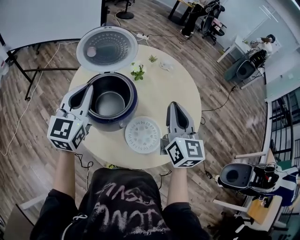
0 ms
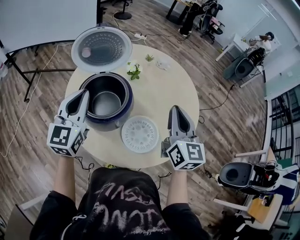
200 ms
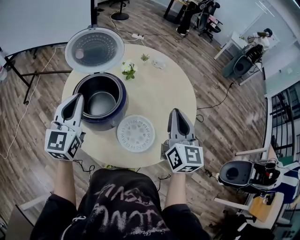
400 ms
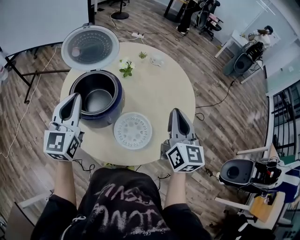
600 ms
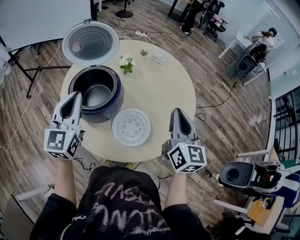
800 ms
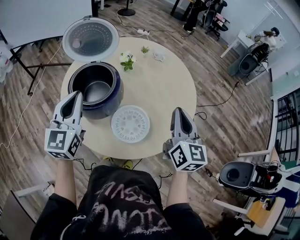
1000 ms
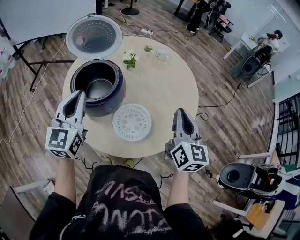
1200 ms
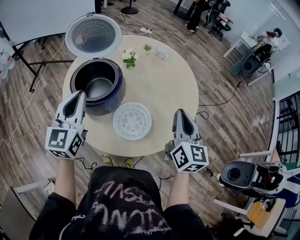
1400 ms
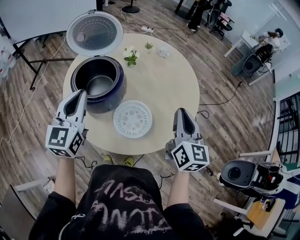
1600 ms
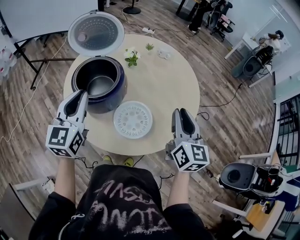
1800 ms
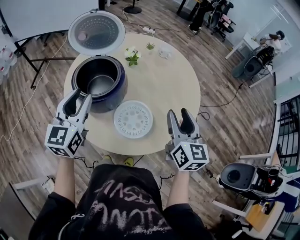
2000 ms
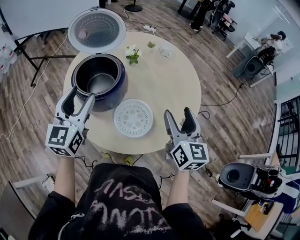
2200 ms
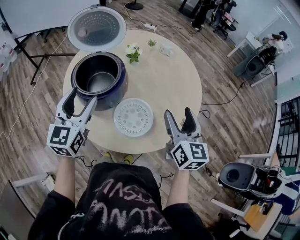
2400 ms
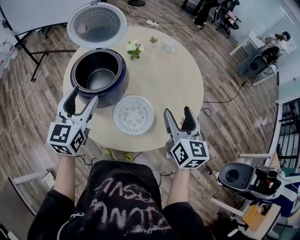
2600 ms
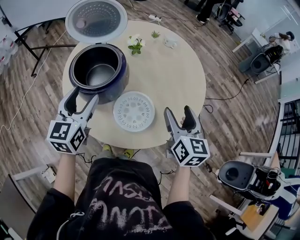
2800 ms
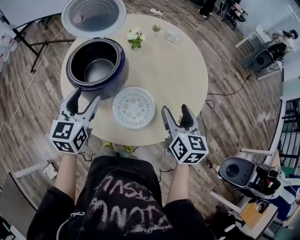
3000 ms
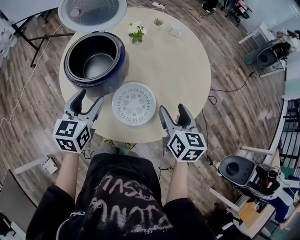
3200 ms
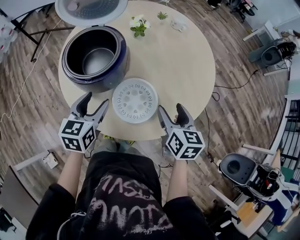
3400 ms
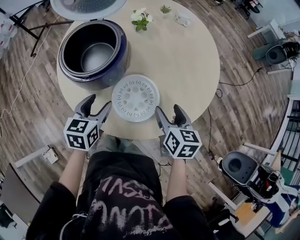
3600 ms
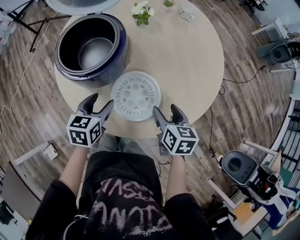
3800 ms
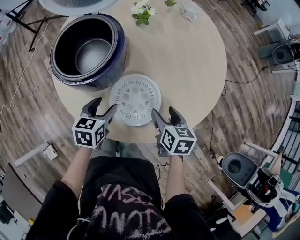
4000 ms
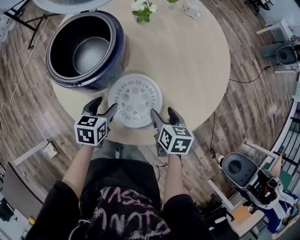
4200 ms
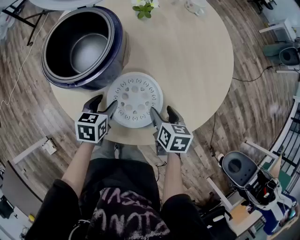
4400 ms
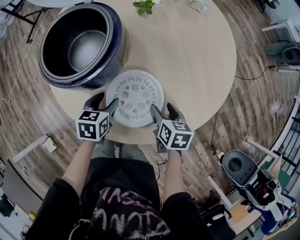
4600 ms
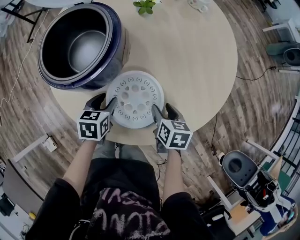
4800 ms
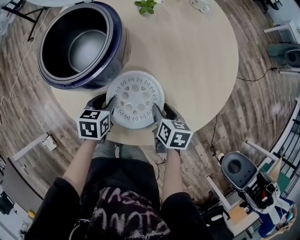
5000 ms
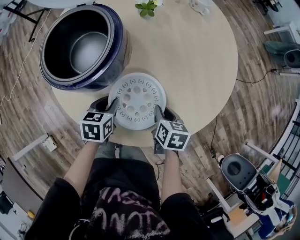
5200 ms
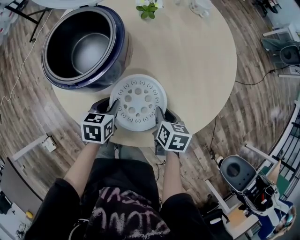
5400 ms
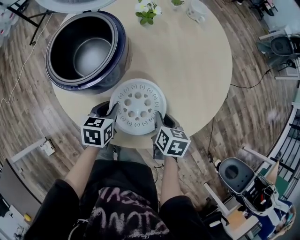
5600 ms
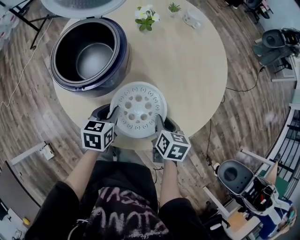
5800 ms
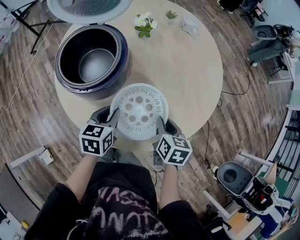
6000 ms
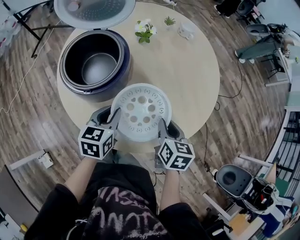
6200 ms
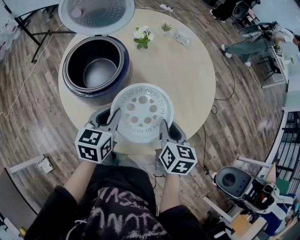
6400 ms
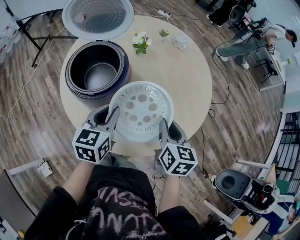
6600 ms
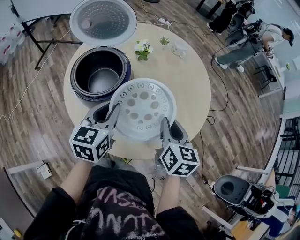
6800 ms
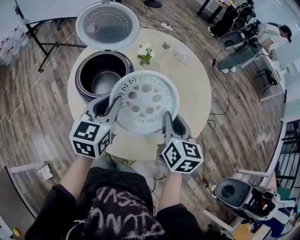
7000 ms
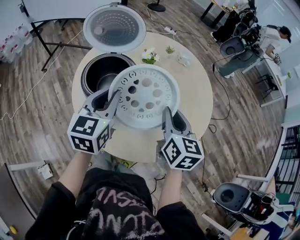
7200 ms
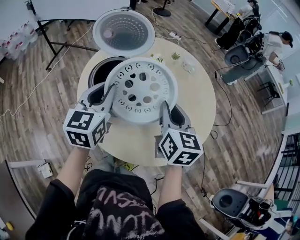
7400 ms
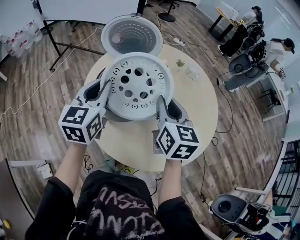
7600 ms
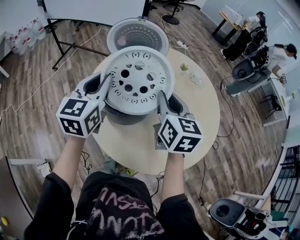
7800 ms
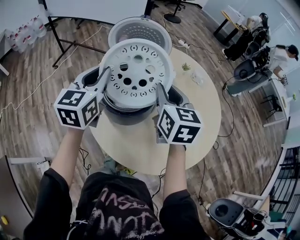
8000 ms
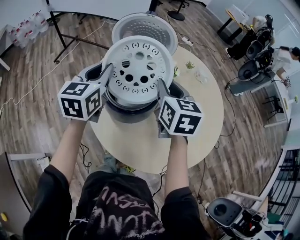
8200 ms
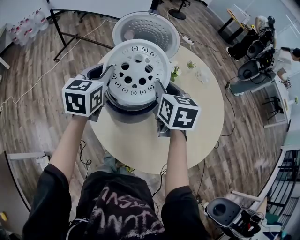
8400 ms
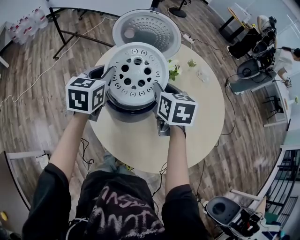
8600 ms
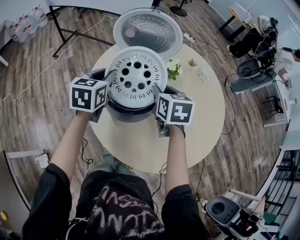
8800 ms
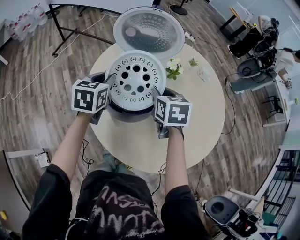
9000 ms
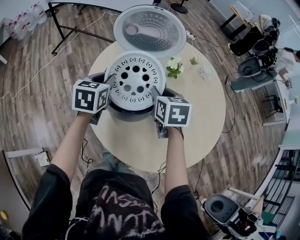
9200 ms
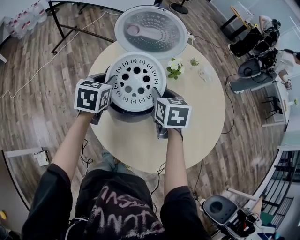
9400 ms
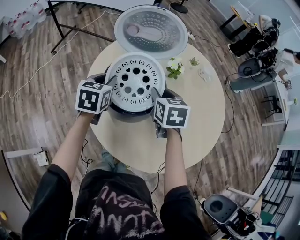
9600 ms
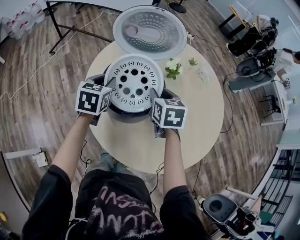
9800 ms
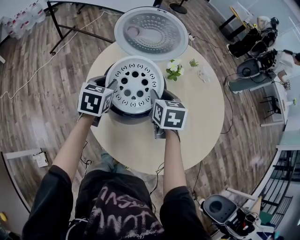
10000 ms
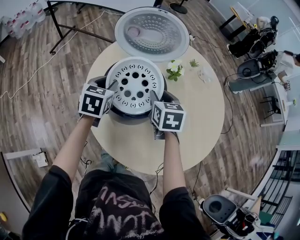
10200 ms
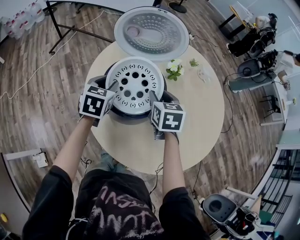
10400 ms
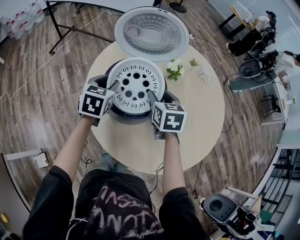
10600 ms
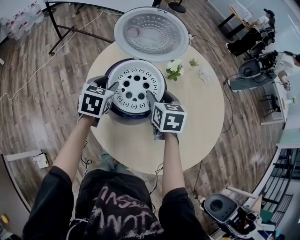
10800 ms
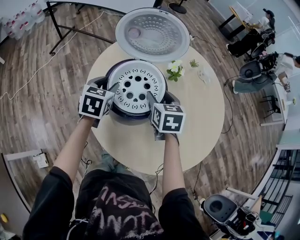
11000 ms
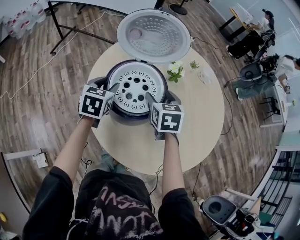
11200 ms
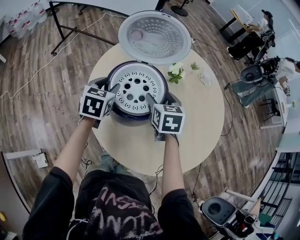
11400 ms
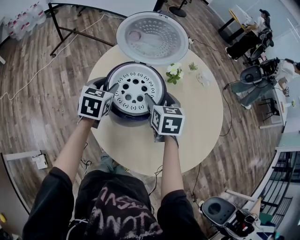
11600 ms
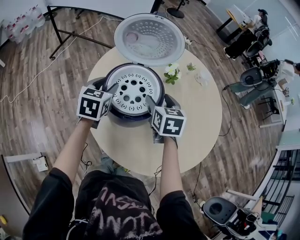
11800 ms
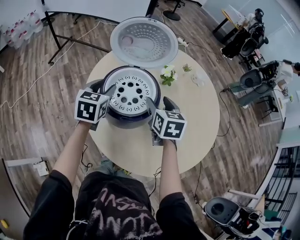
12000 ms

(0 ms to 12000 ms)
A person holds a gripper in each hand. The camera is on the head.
0 ms - 1600 ms: The left gripper shifts some 10 cm backward and to the right. Meanwhile the right gripper shifts roughly 15 cm to the right and backward.
1600 ms - 3000 ms: The two grippers go some 10 cm downward. The left gripper opens its fingers, while the right gripper opens its fingers.
3000 ms - 4400 ms: The two grippers go approximately 25 cm downward. The right gripper changes its angle by about 30 degrees; the left gripper points its fingers approximately 30 degrees further downward.
4400 ms - 6000 ms: The grippers both shift upward by approximately 5 cm. The right gripper closes its fingers, while the left gripper closes.
6000 ms - 7600 ms: Both grippers travel together upward and to the left, about 30 cm. The right gripper points its fingers about 30 degrees further upward, while the left gripper rotates approximately 40 degrees.
7600 ms - 9000 ms: Both grippers move downward, forward and to the left, some 15 cm. The left gripper turns by some 20 degrees. Meanwhile the right gripper turns by roughly 30 degrees.
9000 ms - 10400 ms: There are only small adjustments of the grippers.
10400 ms - 12000 ms: The right gripper opens.

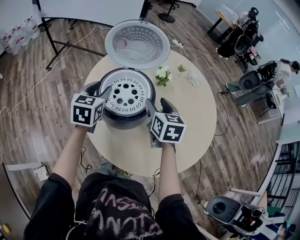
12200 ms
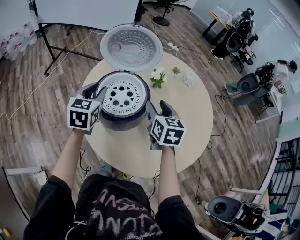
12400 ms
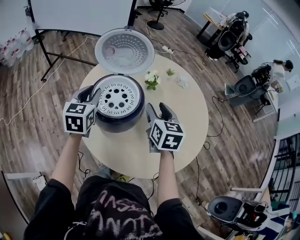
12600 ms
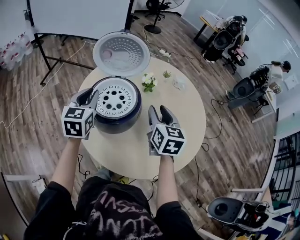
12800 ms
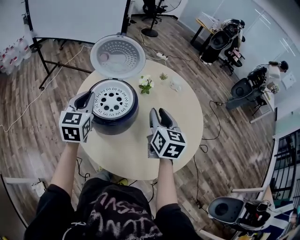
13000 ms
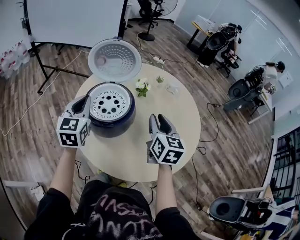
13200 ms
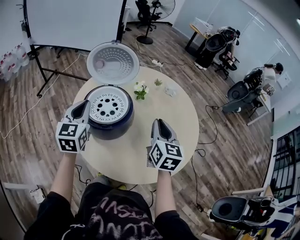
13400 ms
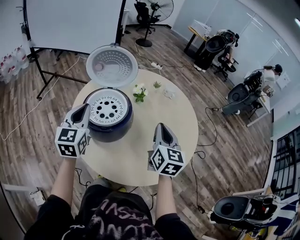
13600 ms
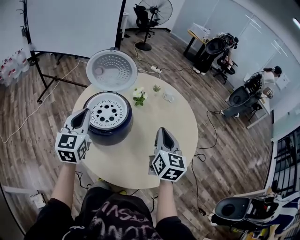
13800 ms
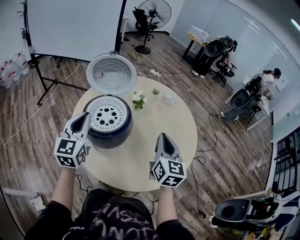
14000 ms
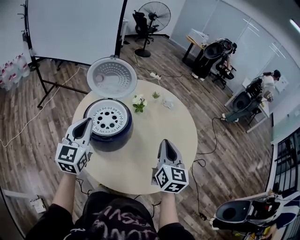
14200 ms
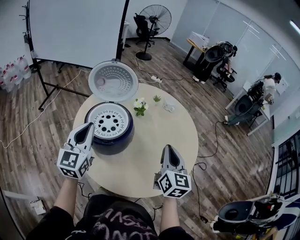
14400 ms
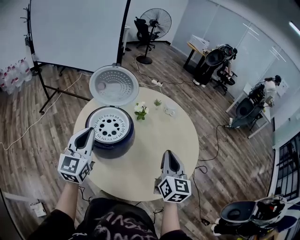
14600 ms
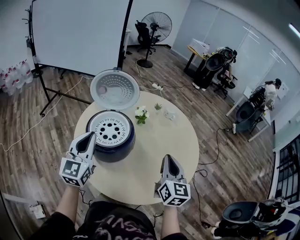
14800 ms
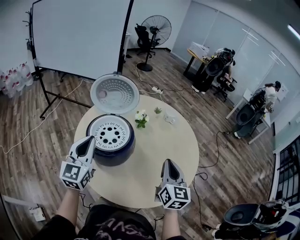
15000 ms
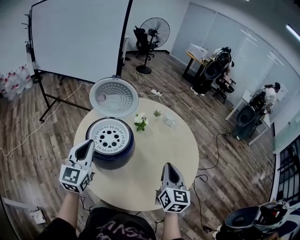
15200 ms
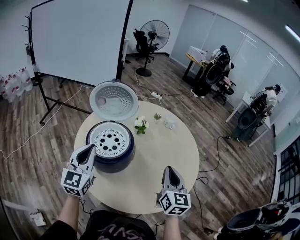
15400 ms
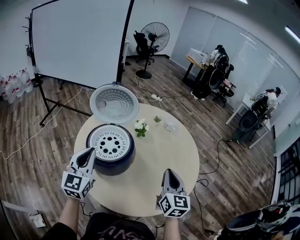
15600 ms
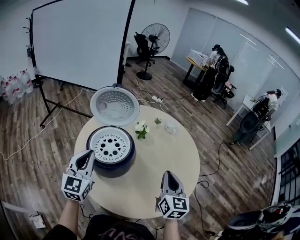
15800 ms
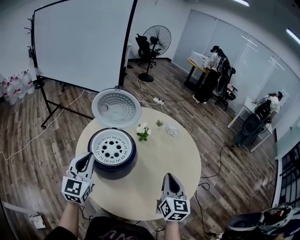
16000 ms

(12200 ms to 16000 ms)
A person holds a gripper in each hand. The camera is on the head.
12200 ms - 13400 ms: The left gripper goes approximately 10 cm upward and backward, and closes, while the right gripper heads backward, to the right and upward, covering some 15 cm, changes its angle by some 20 degrees, and closes its fingers.
13400 ms - 14800 ms: The right gripper ends up about 5 cm from where it was. The left gripper moves some 5 cm.
14800 ms - 16000 ms: The grippers stay close to where they were, moving slightly.

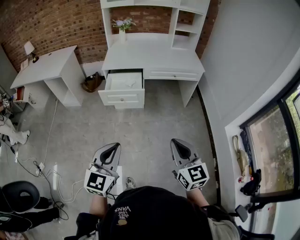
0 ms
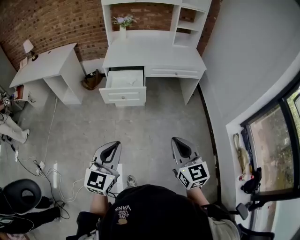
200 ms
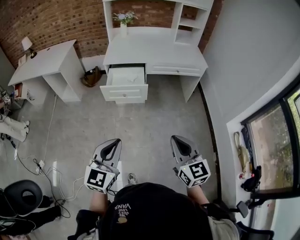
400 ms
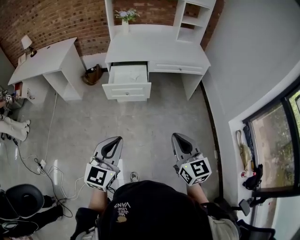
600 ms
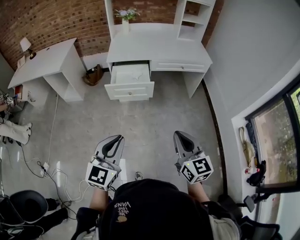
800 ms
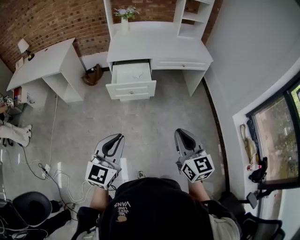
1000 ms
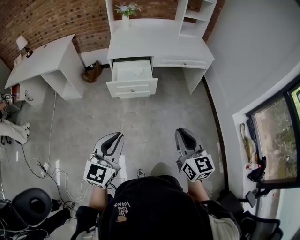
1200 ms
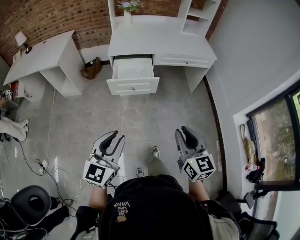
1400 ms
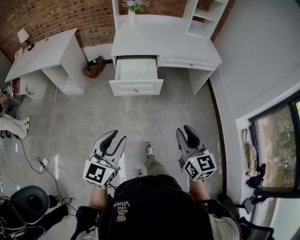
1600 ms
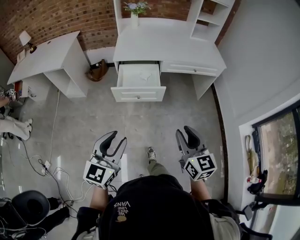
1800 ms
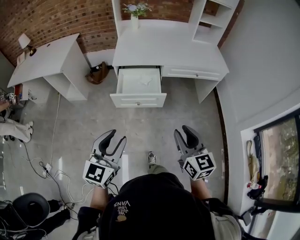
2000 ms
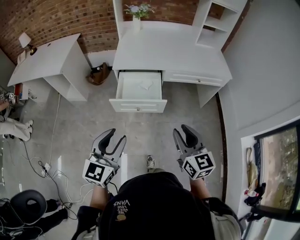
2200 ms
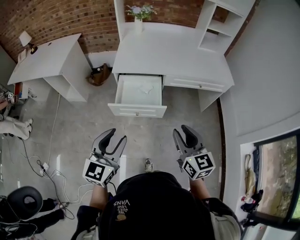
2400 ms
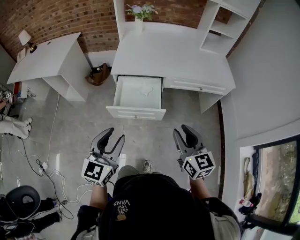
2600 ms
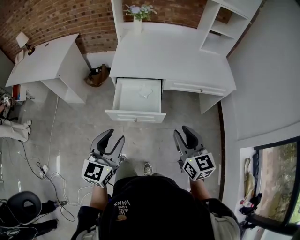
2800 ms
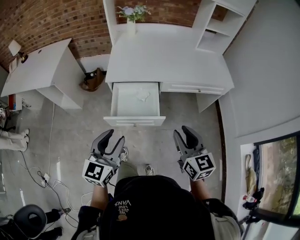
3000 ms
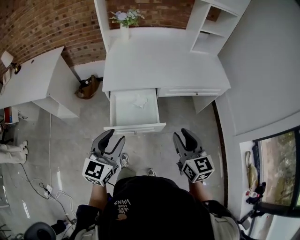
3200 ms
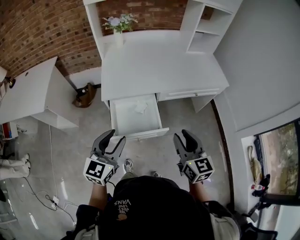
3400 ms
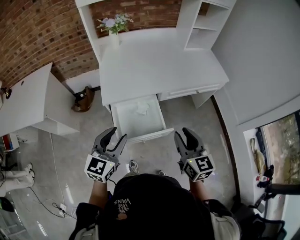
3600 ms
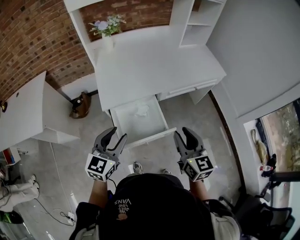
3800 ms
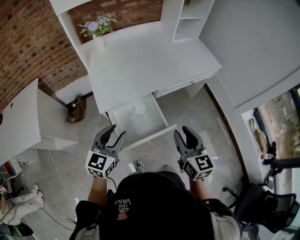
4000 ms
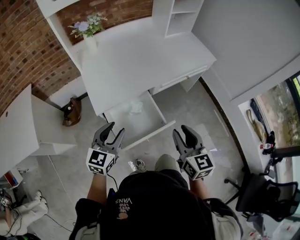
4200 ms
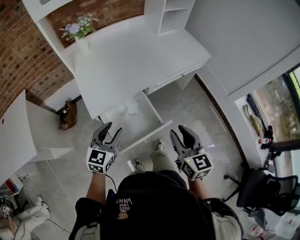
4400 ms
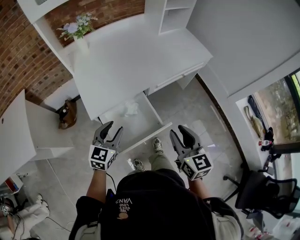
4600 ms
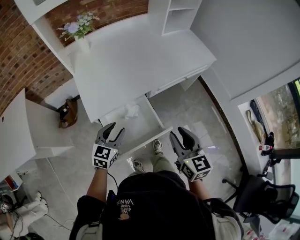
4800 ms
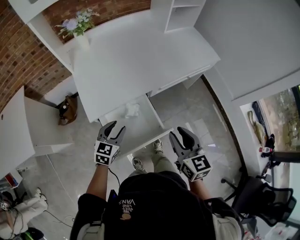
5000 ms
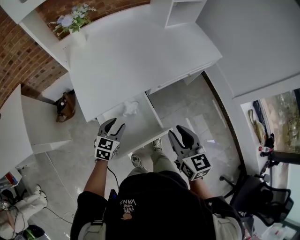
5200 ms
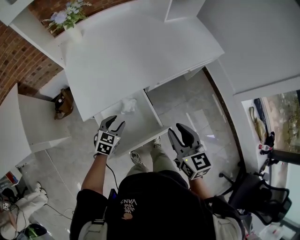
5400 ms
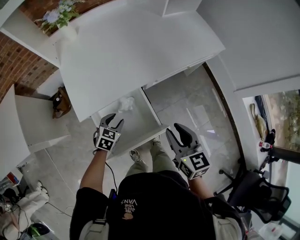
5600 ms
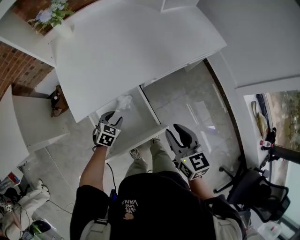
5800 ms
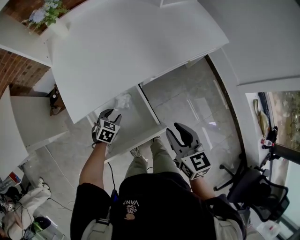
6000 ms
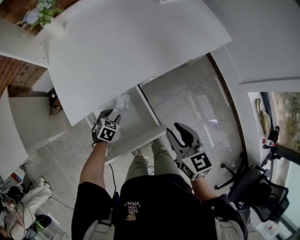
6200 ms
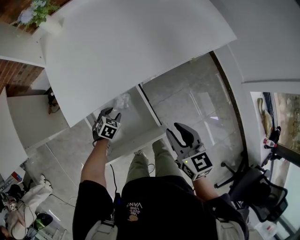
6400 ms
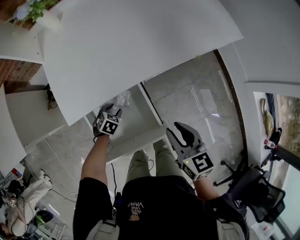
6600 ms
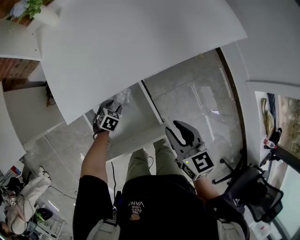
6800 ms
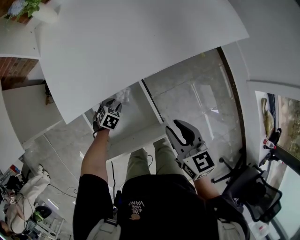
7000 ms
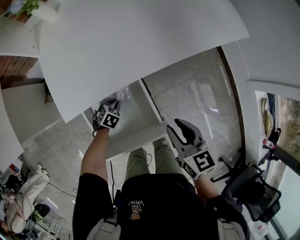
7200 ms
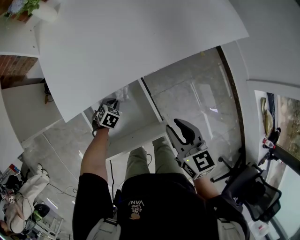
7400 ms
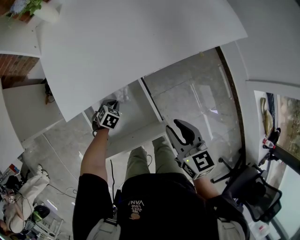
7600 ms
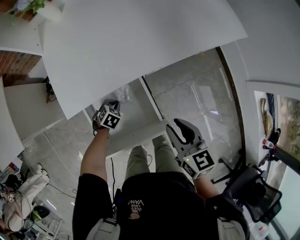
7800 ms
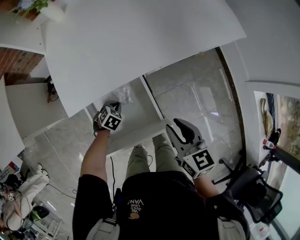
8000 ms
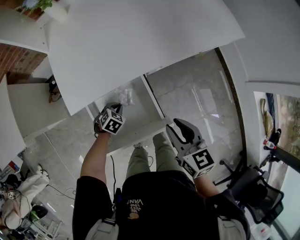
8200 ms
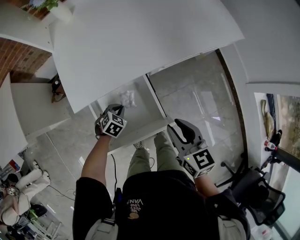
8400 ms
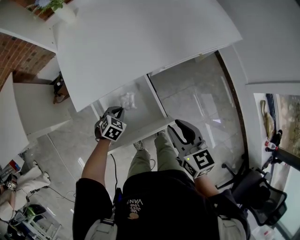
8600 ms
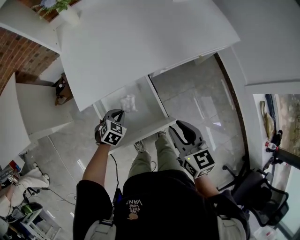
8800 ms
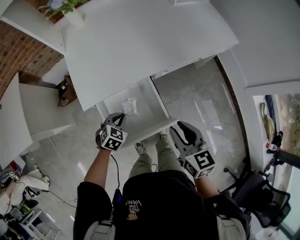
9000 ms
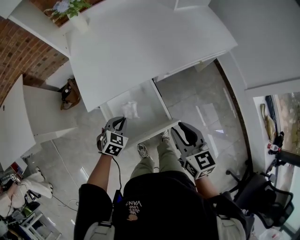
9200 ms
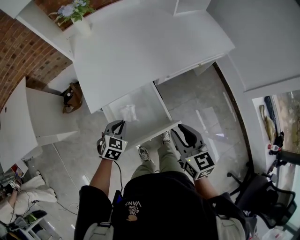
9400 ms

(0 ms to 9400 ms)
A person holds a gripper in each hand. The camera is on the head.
0 ms - 1600 ms: Both grippers travel together to the left and forward, approximately 15 cm. The left gripper opens. Meanwhile the right gripper opens up.
1600 ms - 3200 ms: Both grippers travel together forward, about 35 cm.
3200 ms - 4800 ms: The left gripper shifts about 30 cm forward, downward and to the left, and turns by approximately 30 degrees, while the right gripper travels to the left and forward by roughly 15 cm, and changes its angle by about 20 degrees.
4800 ms - 6200 ms: The left gripper shifts approximately 25 cm downward, and tilts its fingers about 40 degrees downward; the right gripper is displaced downward and forward by about 15 cm.
6200 ms - 7800 ms: The left gripper is displaced downward by about 5 cm, and closes up.
7800 ms - 9400 ms: The right gripper shifts roughly 10 cm backward and upward; the left gripper goes about 25 cm upward and backward, and rotates some 20 degrees.
